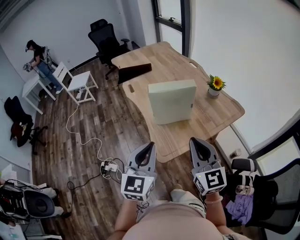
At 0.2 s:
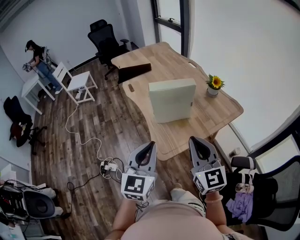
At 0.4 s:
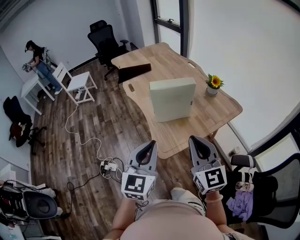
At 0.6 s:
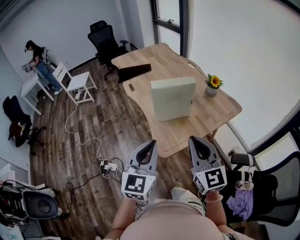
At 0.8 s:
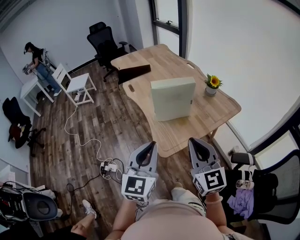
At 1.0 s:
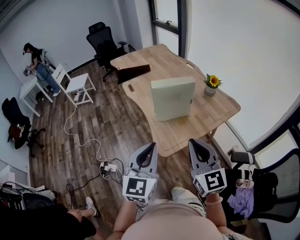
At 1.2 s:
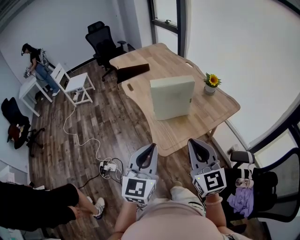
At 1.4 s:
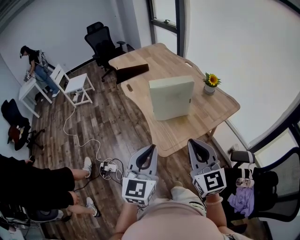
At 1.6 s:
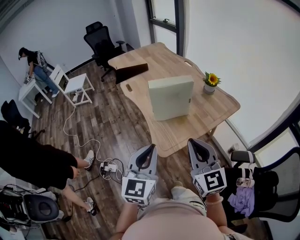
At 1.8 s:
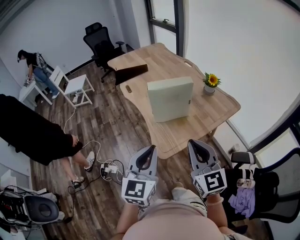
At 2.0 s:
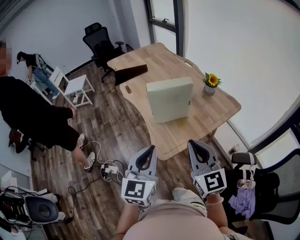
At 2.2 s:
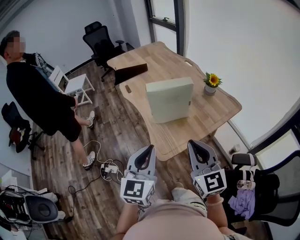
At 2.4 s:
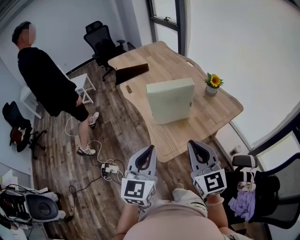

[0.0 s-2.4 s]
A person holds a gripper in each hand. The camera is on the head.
0.0 to 1.2 s: The two grippers go approximately 5 cm backward.
1.2 to 2.4 s: The left gripper shifts by some 5 cm. The right gripper changes place by about 5 cm.

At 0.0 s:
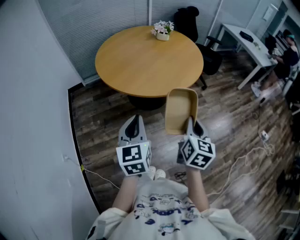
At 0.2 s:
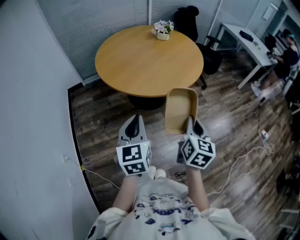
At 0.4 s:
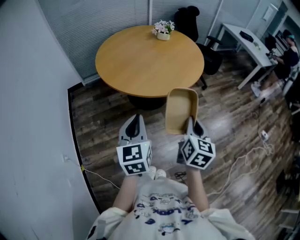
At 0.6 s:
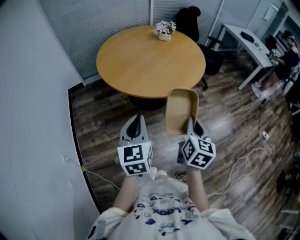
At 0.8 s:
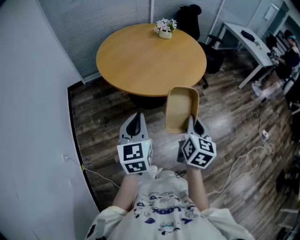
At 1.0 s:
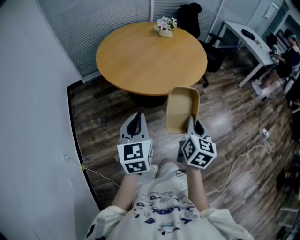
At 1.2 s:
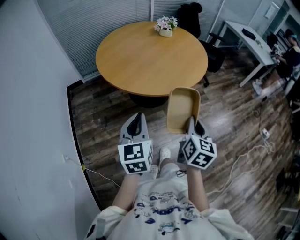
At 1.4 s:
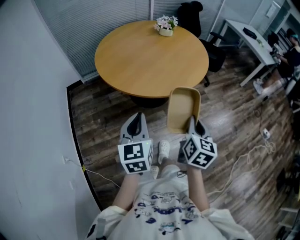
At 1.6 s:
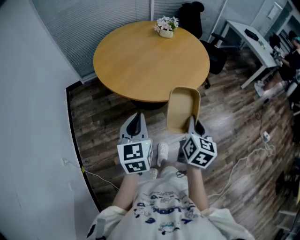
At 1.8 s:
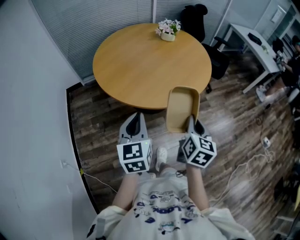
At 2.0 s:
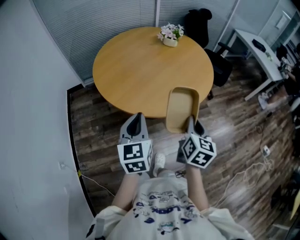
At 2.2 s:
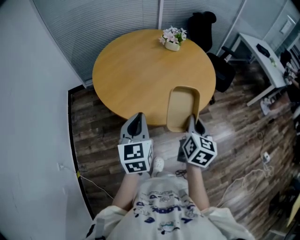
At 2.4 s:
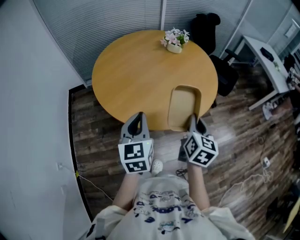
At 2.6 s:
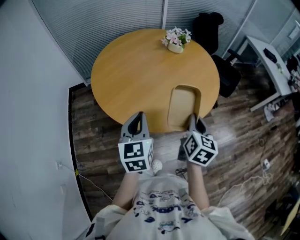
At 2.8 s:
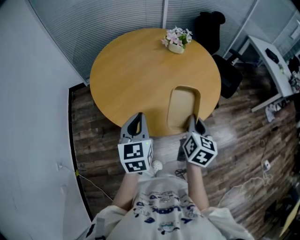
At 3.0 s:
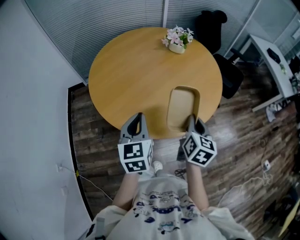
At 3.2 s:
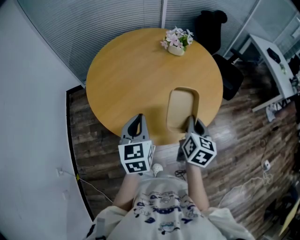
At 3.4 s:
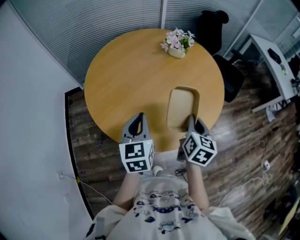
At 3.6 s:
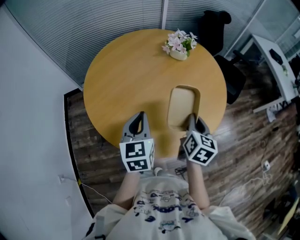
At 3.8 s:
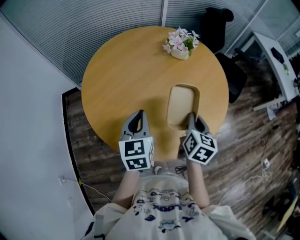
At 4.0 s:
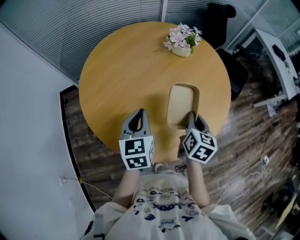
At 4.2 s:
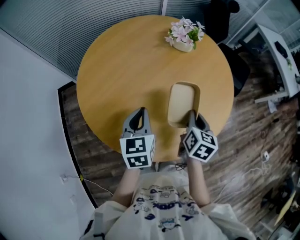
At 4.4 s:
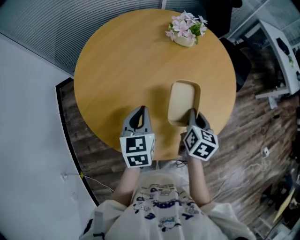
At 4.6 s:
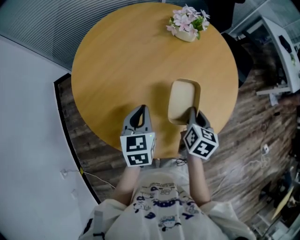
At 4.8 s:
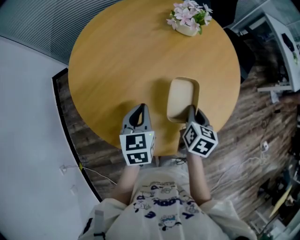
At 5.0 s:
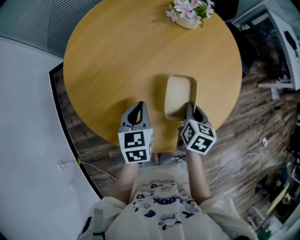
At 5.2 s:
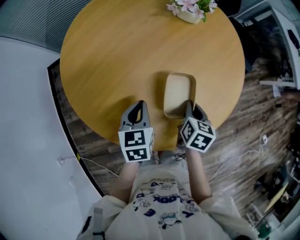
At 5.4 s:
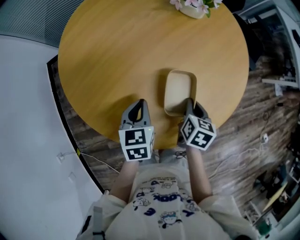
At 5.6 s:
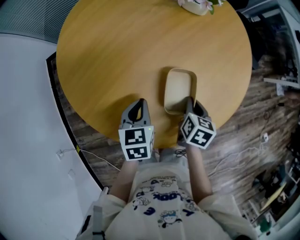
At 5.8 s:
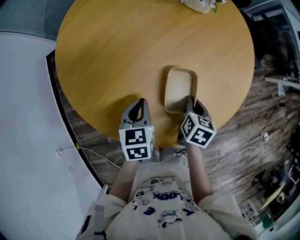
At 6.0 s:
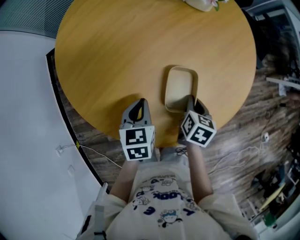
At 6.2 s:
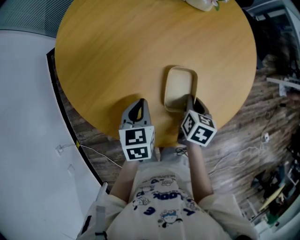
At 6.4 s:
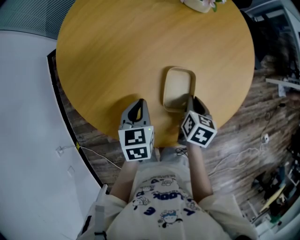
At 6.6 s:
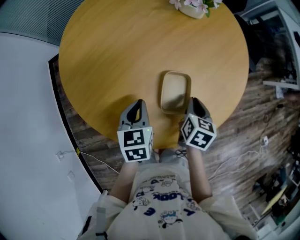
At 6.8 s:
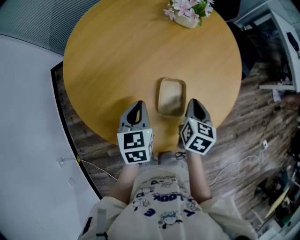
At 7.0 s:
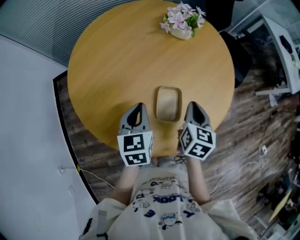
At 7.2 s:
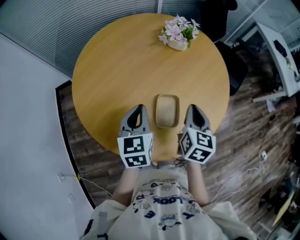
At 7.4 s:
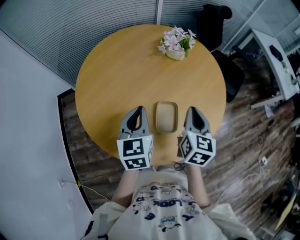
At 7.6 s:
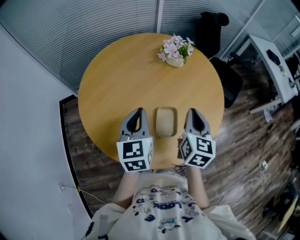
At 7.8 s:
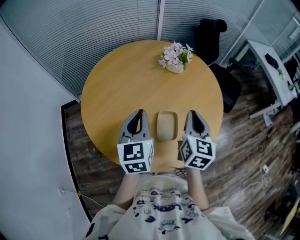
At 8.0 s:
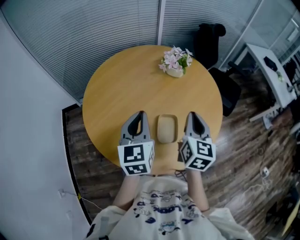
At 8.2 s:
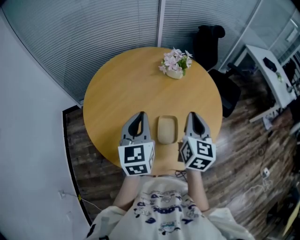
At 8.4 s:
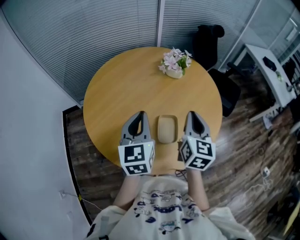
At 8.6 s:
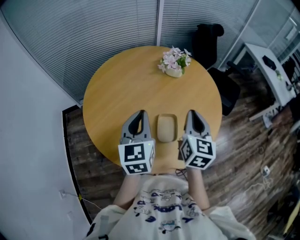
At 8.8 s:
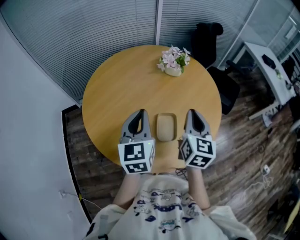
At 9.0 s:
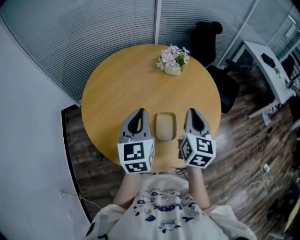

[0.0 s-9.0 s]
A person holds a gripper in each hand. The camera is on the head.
0.0 to 1.6 s: Both grippers travel together forward, approximately 10 cm.
1.6 to 3.0 s: The two grippers go some 25 cm forward.
3.0 to 4.4 s: The two grippers go roughly 20 cm forward and downward.
4.4 to 6.0 s: Both grippers travel together downward, some 15 cm.
6.0 to 7.6 s: Both grippers move upward, about 25 cm. The left gripper changes its angle by approximately 30 degrees. The right gripper angles its fingers upward, by some 40 degrees.
7.6 to 9.0 s: The grippers make only small movements.

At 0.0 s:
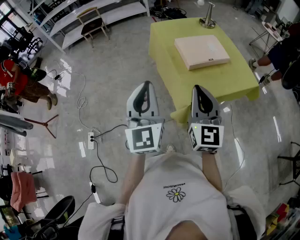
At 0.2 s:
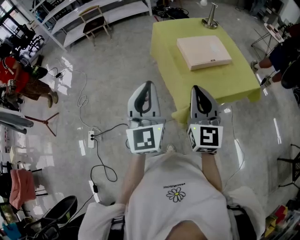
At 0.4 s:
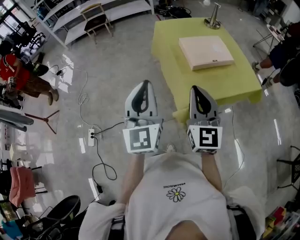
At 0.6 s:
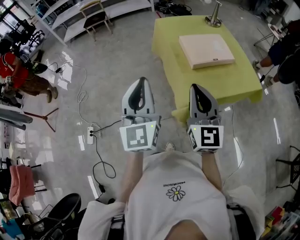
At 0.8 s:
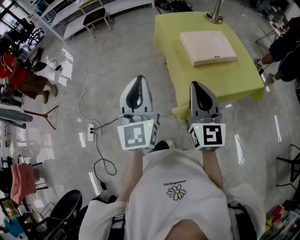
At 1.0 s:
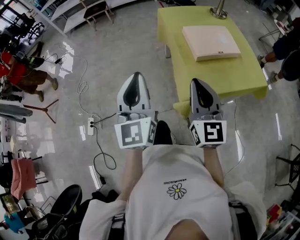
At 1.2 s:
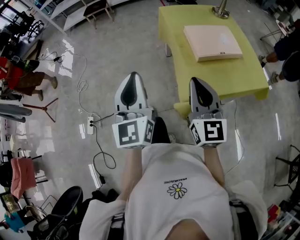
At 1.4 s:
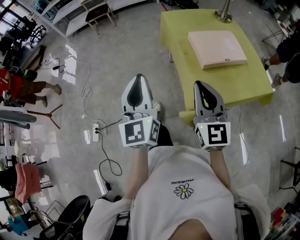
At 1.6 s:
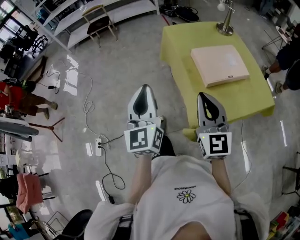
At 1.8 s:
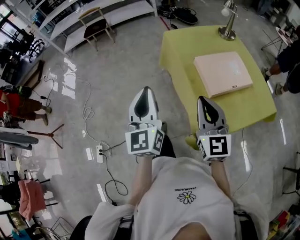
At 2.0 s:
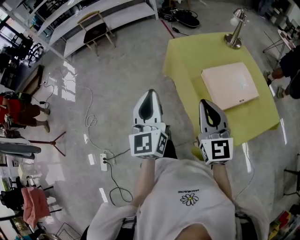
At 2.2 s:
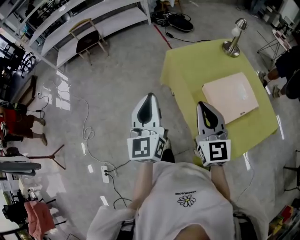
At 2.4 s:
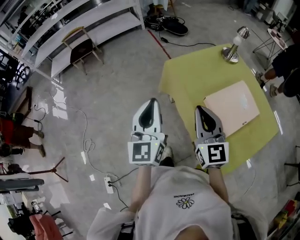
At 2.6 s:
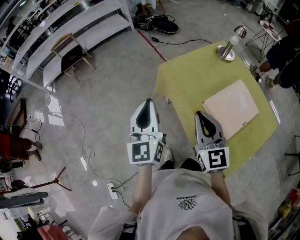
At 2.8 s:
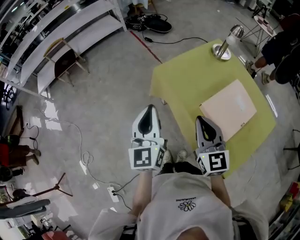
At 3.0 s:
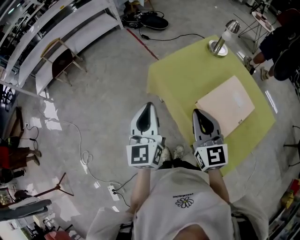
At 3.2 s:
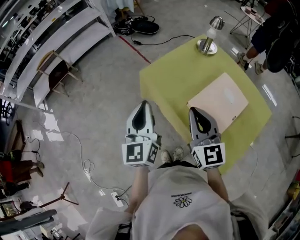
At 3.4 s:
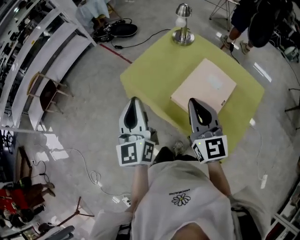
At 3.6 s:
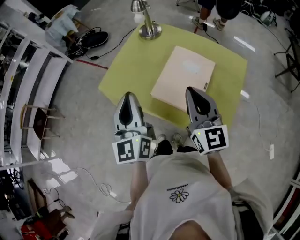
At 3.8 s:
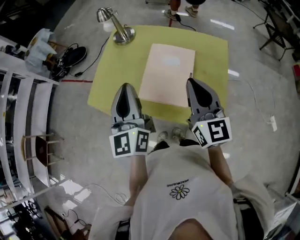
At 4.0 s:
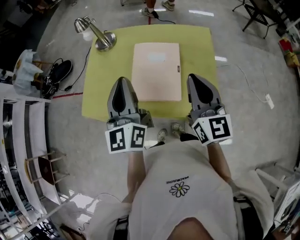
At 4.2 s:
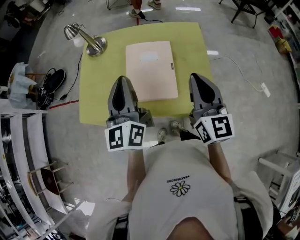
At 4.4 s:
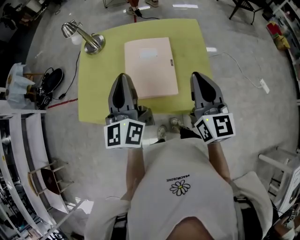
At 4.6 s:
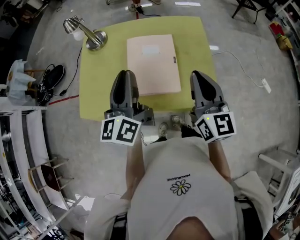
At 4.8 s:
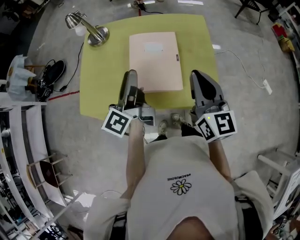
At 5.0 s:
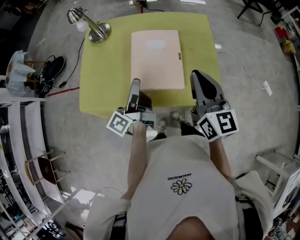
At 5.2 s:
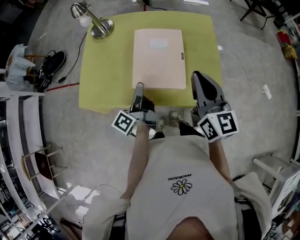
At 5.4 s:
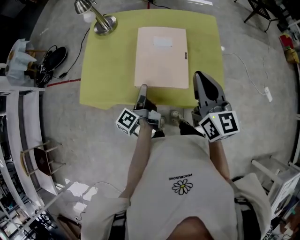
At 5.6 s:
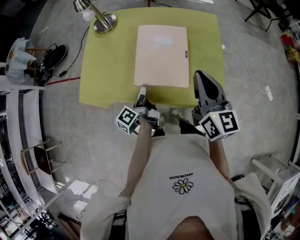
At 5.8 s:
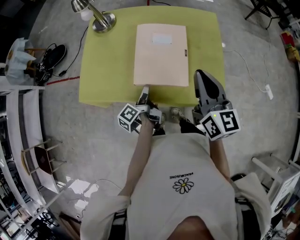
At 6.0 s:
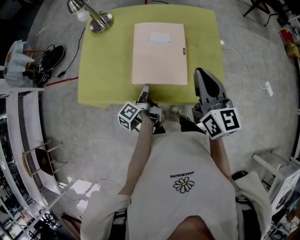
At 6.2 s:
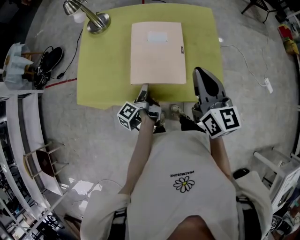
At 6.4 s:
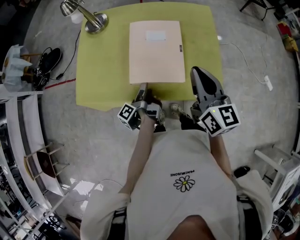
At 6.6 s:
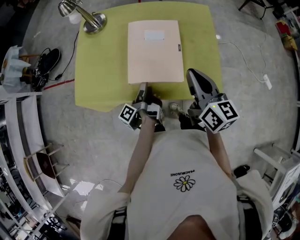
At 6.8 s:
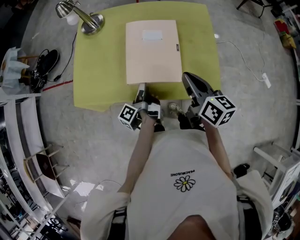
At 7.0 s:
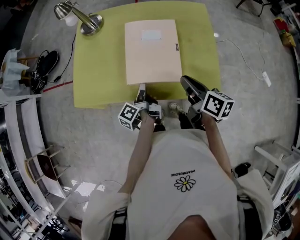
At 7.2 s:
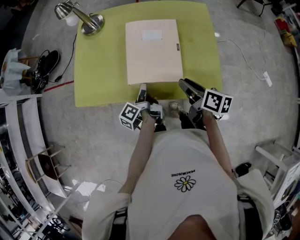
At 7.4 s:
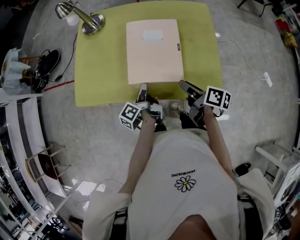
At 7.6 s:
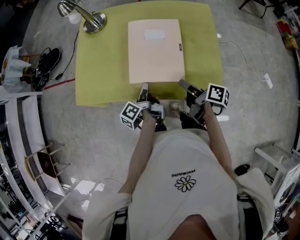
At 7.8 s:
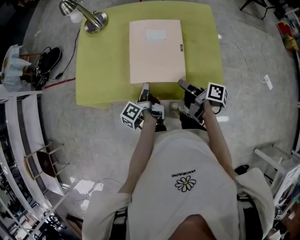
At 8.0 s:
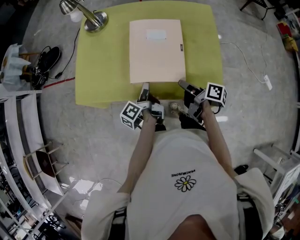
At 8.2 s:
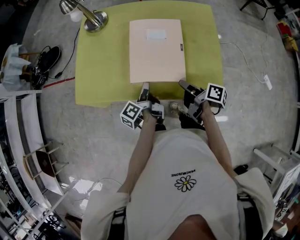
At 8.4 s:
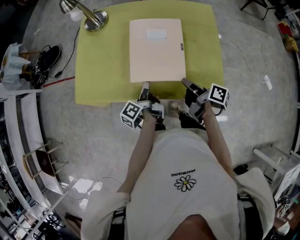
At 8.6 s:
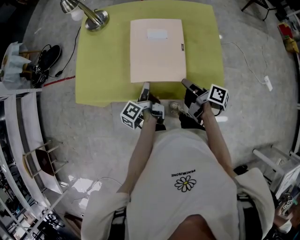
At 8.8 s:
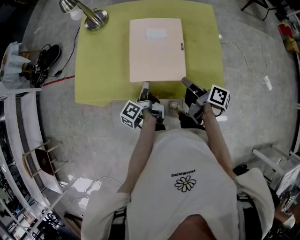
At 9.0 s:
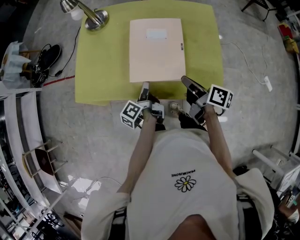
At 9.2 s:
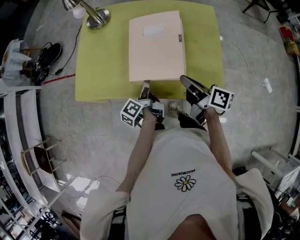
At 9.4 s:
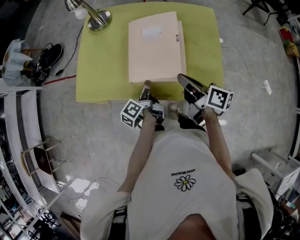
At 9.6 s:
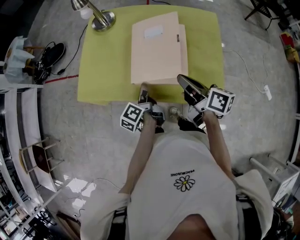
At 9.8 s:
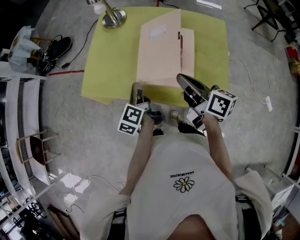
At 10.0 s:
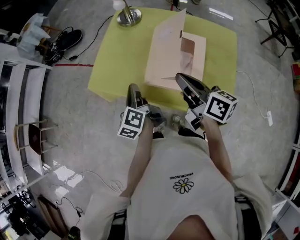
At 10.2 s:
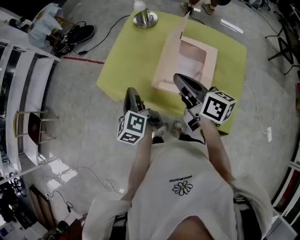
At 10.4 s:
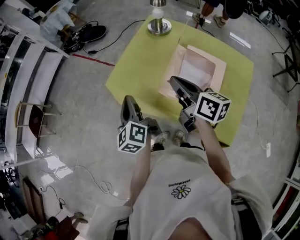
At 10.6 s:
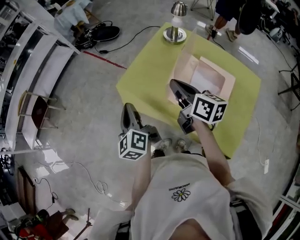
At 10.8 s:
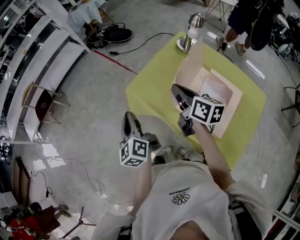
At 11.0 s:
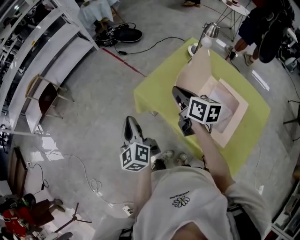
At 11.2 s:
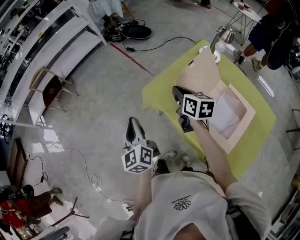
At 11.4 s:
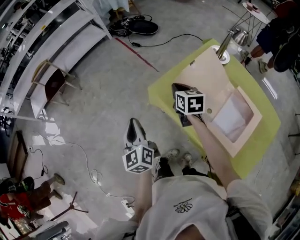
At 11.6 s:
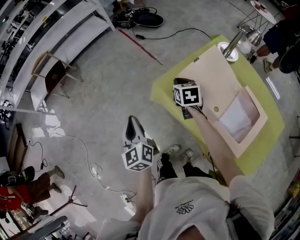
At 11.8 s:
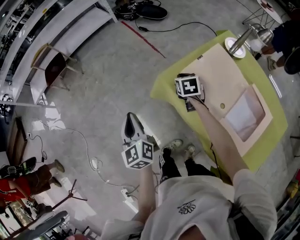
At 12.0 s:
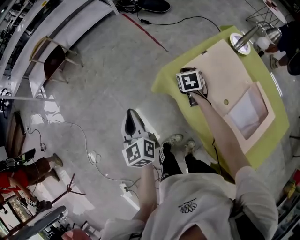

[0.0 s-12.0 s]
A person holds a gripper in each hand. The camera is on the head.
0.0 to 1.6 s: The right gripper travels forward by some 10 cm. The left gripper heads forward and to the left, covering some 15 cm.
1.6 to 3.0 s: Both grippers travel together forward, some 35 cm. The left gripper changes its angle by roughly 20 degrees.
3.0 to 4.4 s: The right gripper changes place by roughly 25 cm, and changes its angle by roughly 60 degrees, while the left gripper ends up roughly 25 cm from where it was, and swivels about 60 degrees.
4.4 to 6.0 s: The right gripper moves roughly 5 cm. The left gripper moves downward, approximately 30 cm, rotates around the line of its fingers by about 70 degrees, counterclockwise from behind, and opens up.
6.0 to 7.6 s: The right gripper moves downward, roughly 20 cm, twists roughly 60 degrees clockwise, seen from behind, and opens its fingers.
7.6 to 9.0 s: The right gripper closes.
9.0 to 10.4 s: The left gripper moves roughly 25 cm, rotates some 60 degrees, and closes. The right gripper changes place by roughly 25 cm, and swivels about 40 degrees.
10.4 to 12.0 s: The right gripper travels forward, downward and to the left by roughly 40 cm, and angles its fingers downward, by about 40 degrees, while the left gripper travels to the left by some 25 cm, and swivels about 30 degrees.
